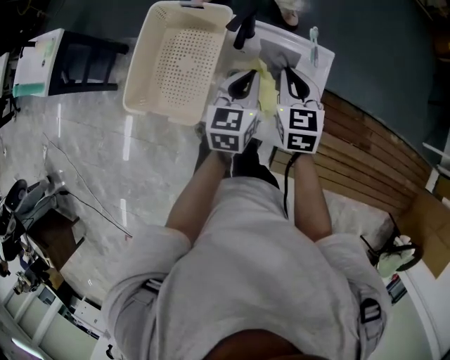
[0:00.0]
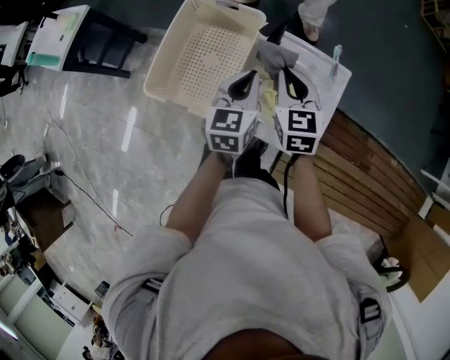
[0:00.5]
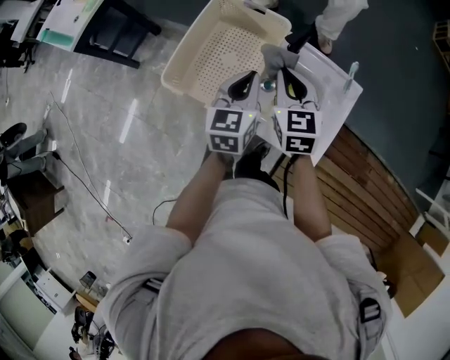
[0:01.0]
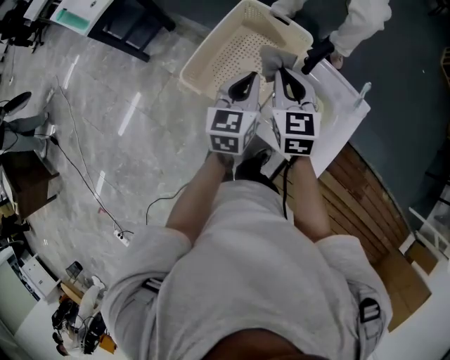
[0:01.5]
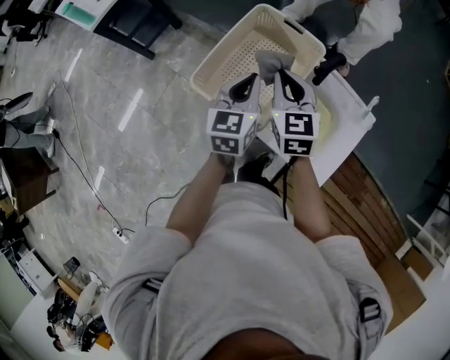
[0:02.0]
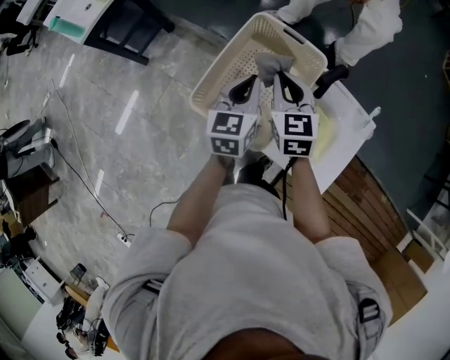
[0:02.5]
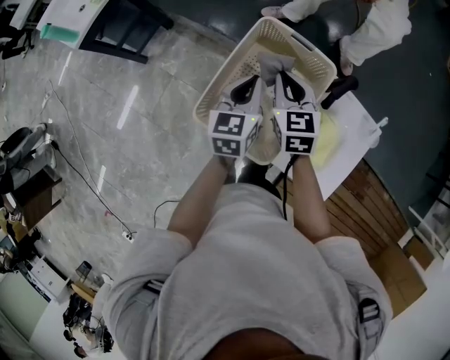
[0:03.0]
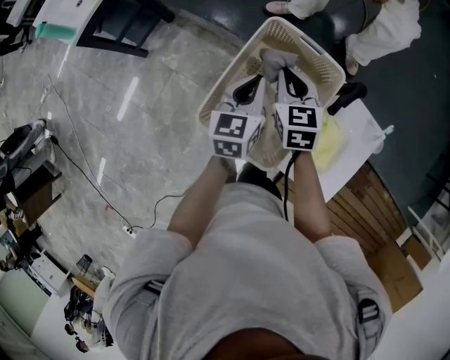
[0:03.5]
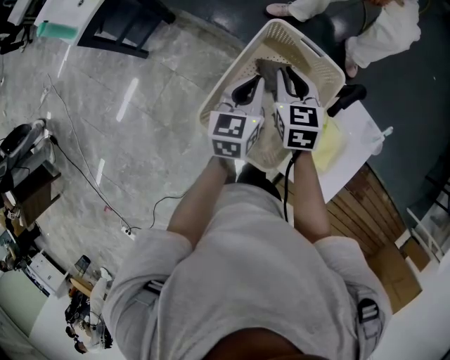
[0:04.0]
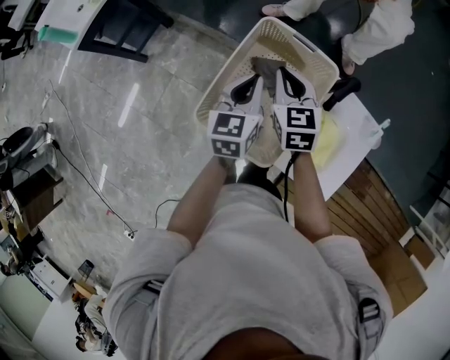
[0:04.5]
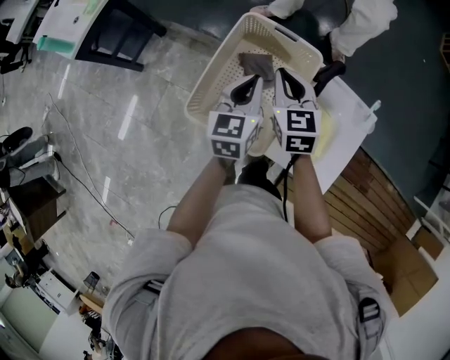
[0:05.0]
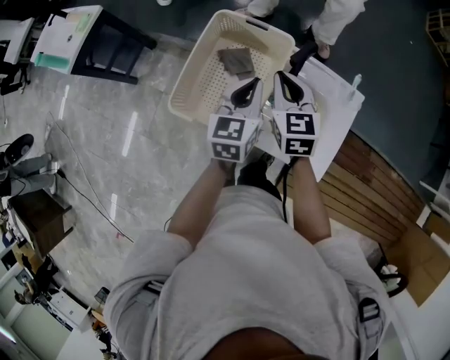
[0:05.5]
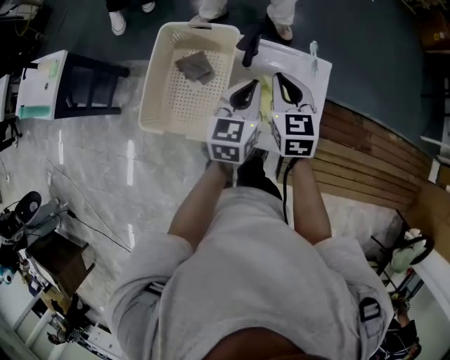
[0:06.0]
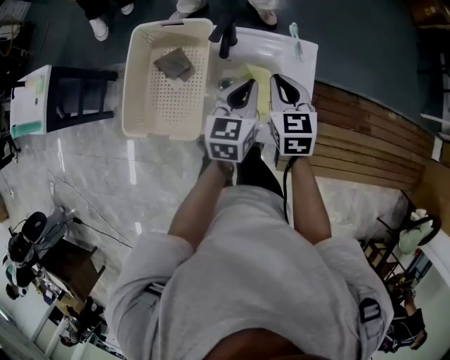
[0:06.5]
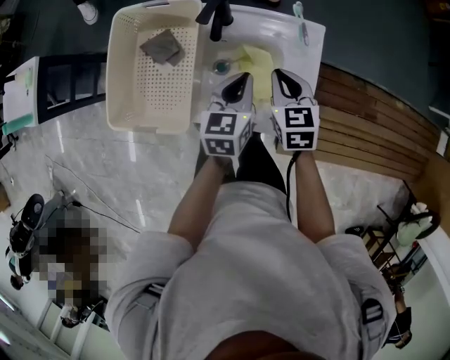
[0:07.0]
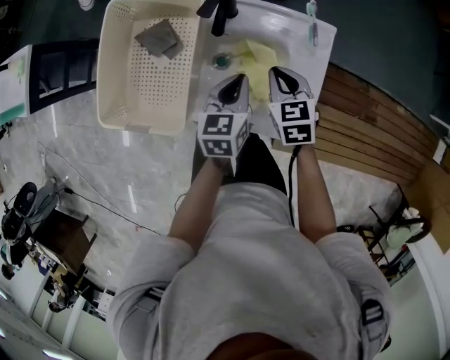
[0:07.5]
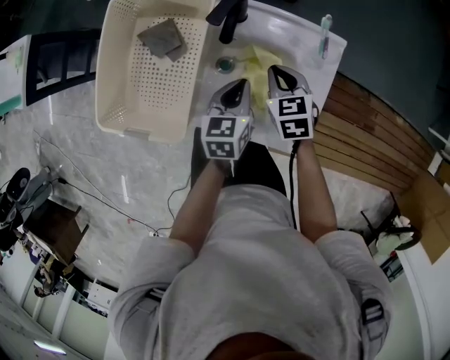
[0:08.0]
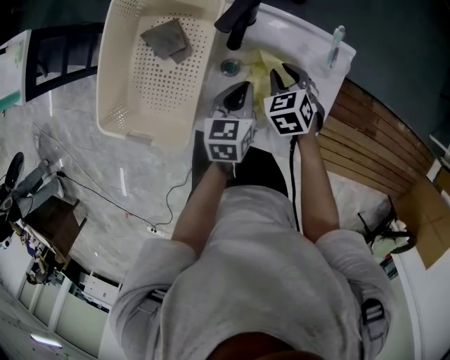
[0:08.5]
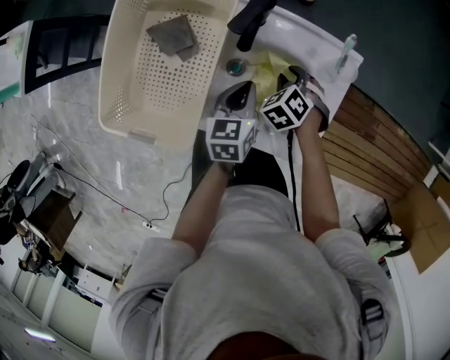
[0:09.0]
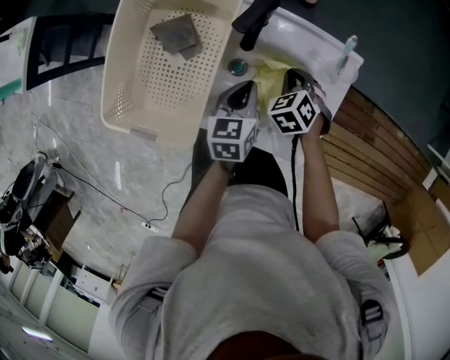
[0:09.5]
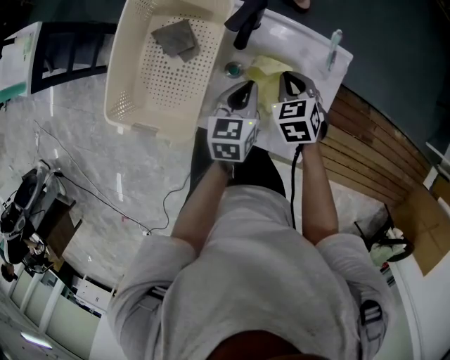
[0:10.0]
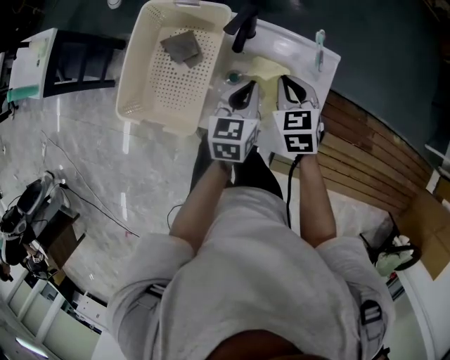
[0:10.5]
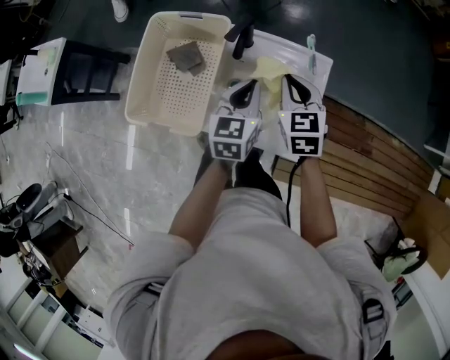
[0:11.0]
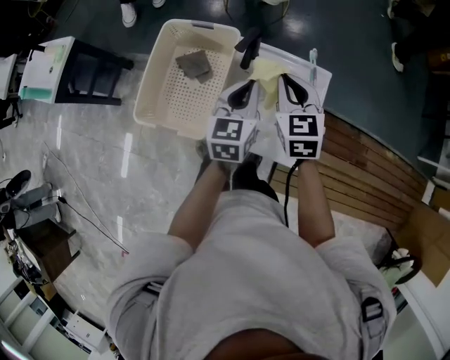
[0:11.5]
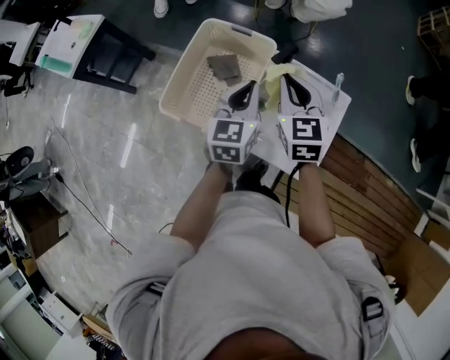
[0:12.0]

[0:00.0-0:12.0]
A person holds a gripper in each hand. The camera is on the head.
0:00.0 to 0:02.0: The grippers both shift to the left by about 25 cm. The right gripper rotates about 20 degrees. Meanwhile the left gripper rotates about 20 degrees.
0:02.0 to 0:04.0: The two grippers go about 10 cm forward and downward.
0:04.0 to 0:06.0: Both grippers move to the right and backward, some 25 cm. The right gripper changes its angle by about 20 degrees, while the left gripper rotates some 20 degrees.
0:06.0 to 0:08.0: The grippers both shift downward by some 20 cm. The left gripper changes its angle by roughly 20 degrees. The right gripper swivels approximately 20 degrees.
0:08.0 to 0:10.0: The right gripper moves some 10 cm downward and comes back, and opens, then closes once more.
0:10.0 to 0:12.0: Both grippers travel together upward and to the left, some 25 cm. The right gripper tilts its fingers some 30 degrees upward, while the left gripper turns by some 20 degrees.

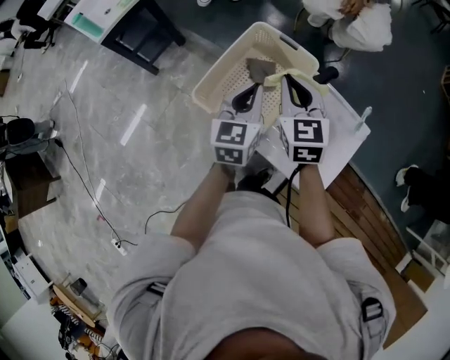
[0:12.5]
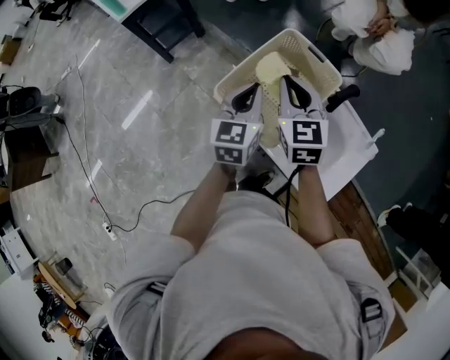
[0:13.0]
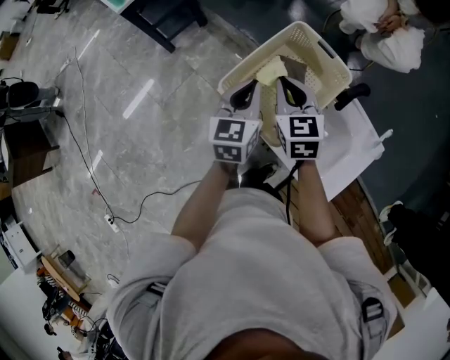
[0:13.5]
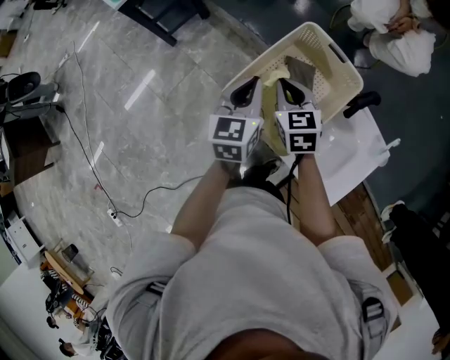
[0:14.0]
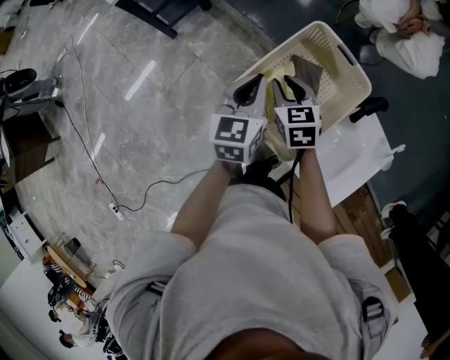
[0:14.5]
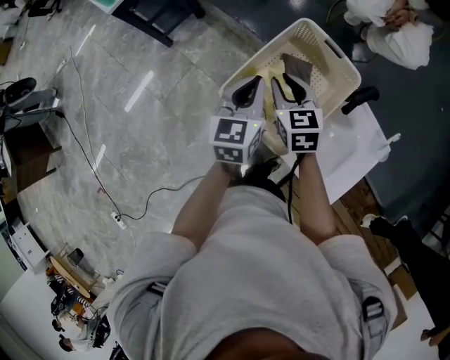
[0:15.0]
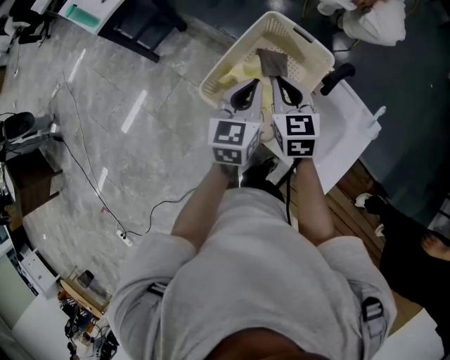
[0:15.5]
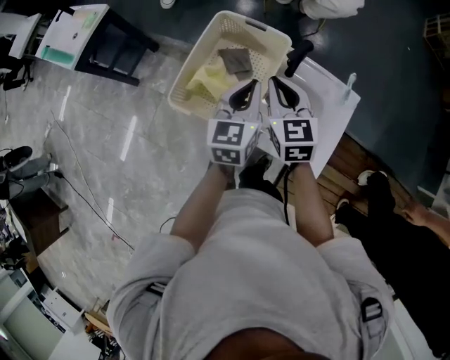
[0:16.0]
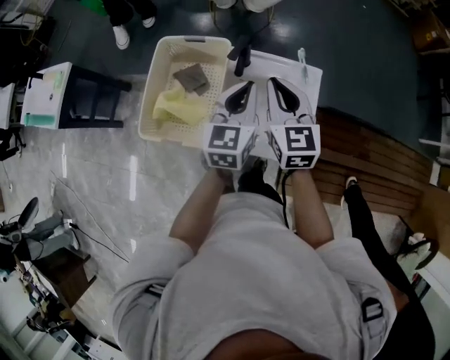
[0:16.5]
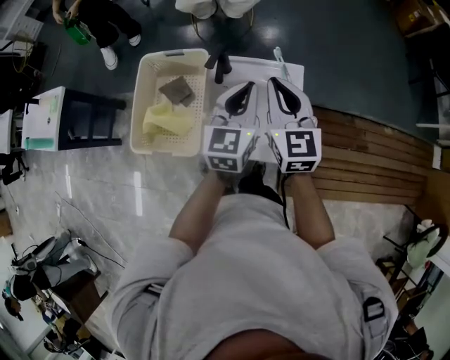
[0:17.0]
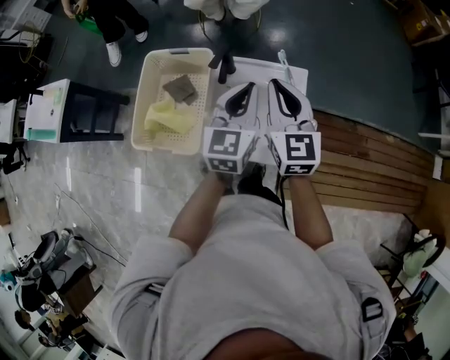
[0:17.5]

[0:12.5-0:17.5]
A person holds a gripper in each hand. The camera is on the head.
0:12.5 to 0:15.0: The left gripper travels to the left by about 10 cm, while the right gripper moves downward, to the left and forward, roughly 15 cm, and opens up.
0:15.0 to 0:17.5: The right gripper changes place by about 40 cm, swivels some 50 degrees, and closes; the left gripper moves about 35 cm, and changes its angle by roughly 40 degrees.

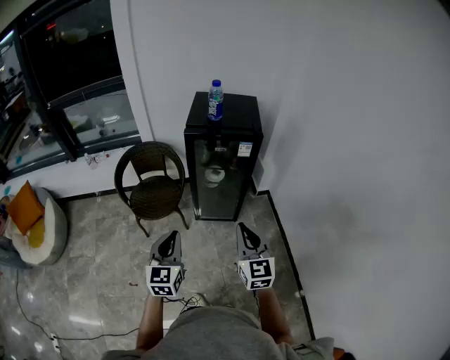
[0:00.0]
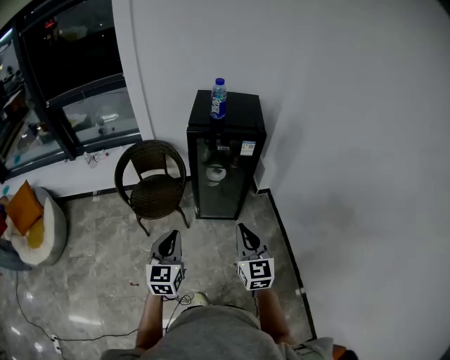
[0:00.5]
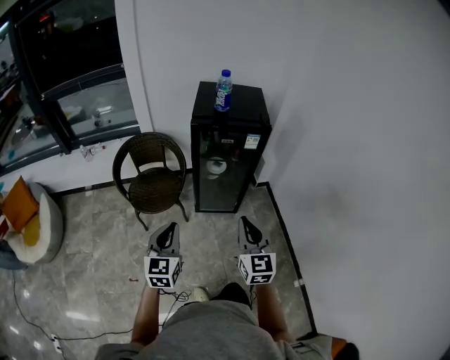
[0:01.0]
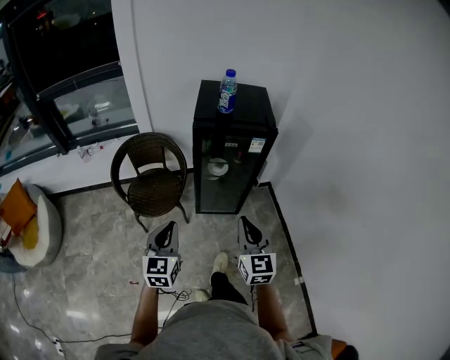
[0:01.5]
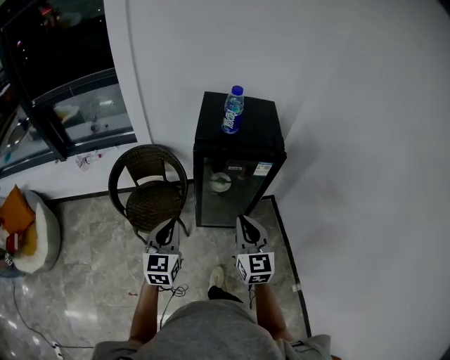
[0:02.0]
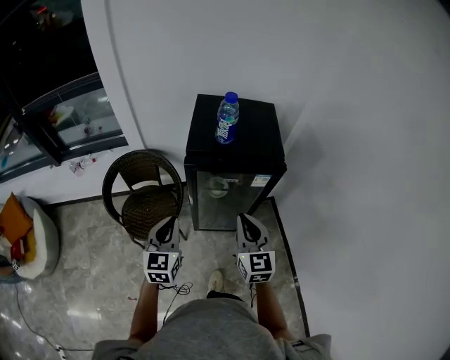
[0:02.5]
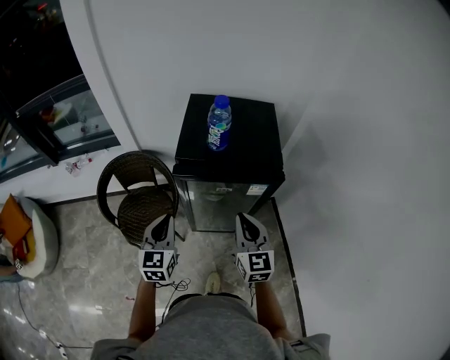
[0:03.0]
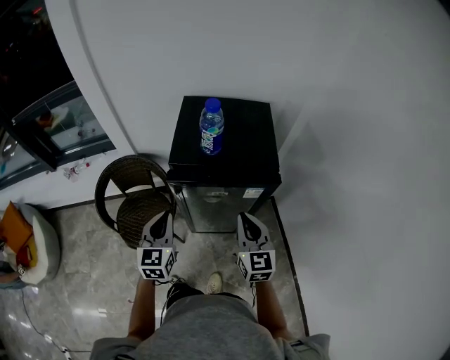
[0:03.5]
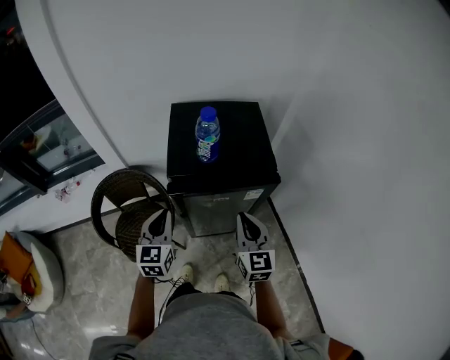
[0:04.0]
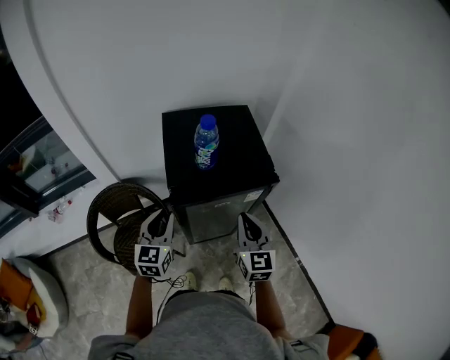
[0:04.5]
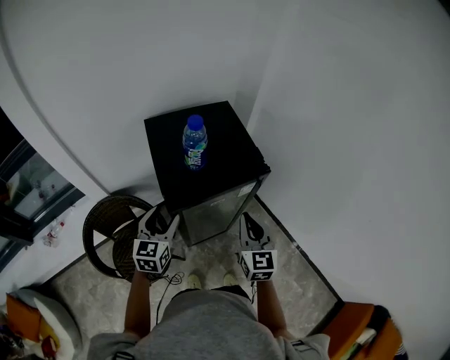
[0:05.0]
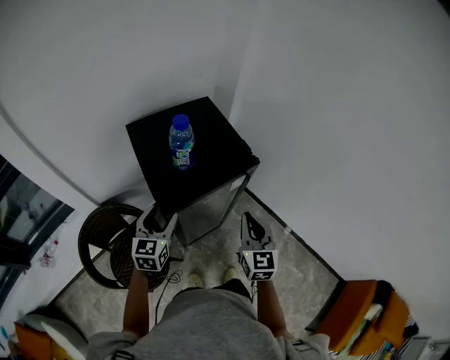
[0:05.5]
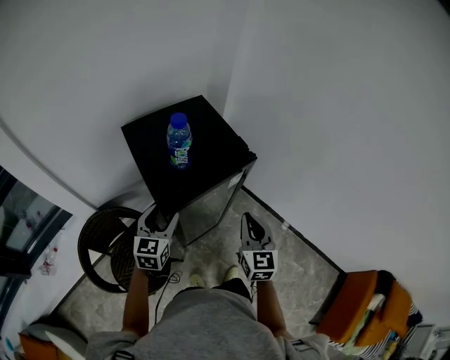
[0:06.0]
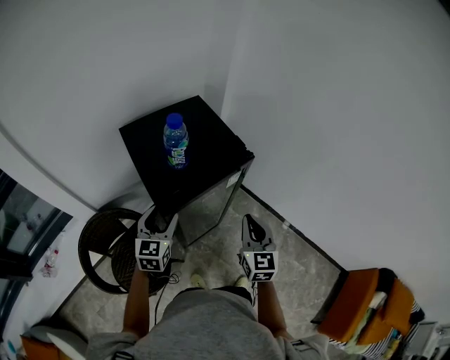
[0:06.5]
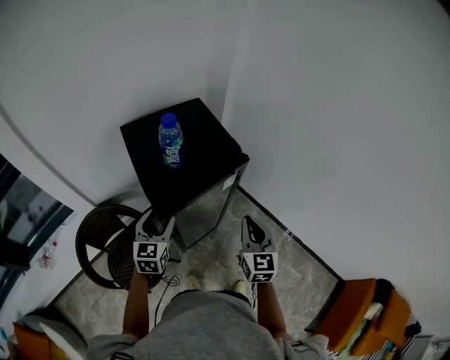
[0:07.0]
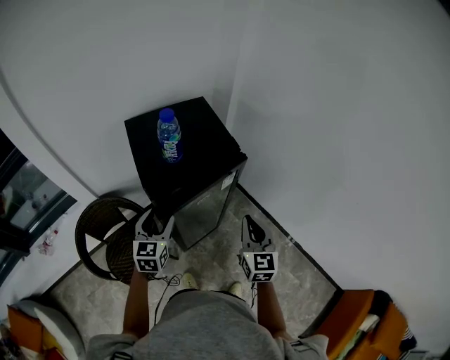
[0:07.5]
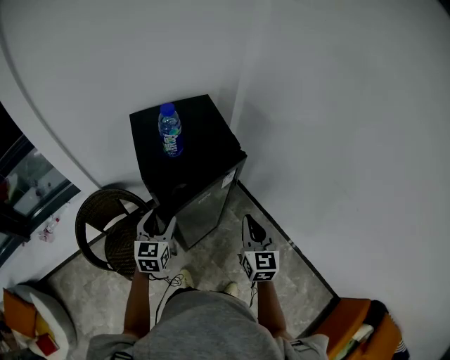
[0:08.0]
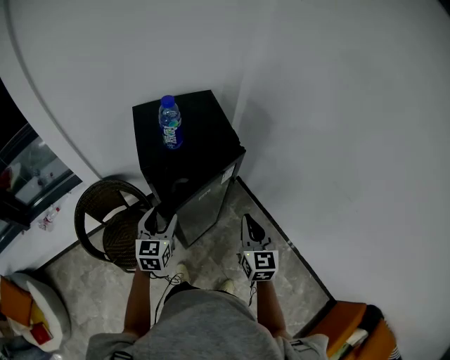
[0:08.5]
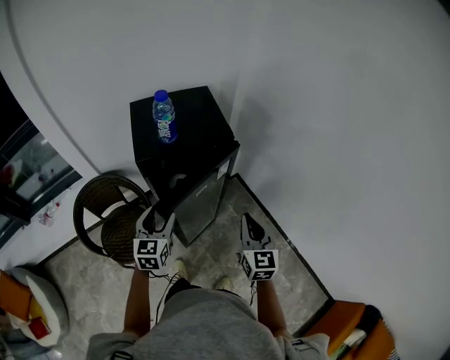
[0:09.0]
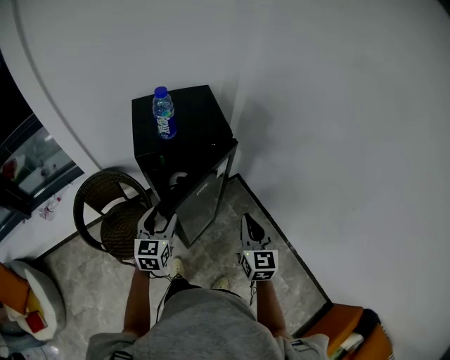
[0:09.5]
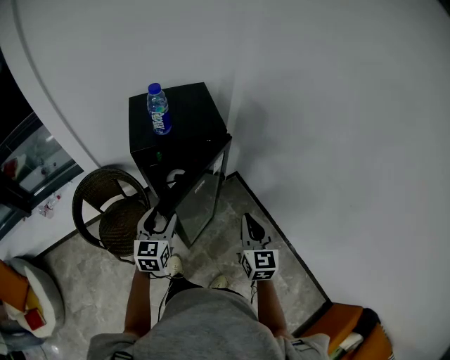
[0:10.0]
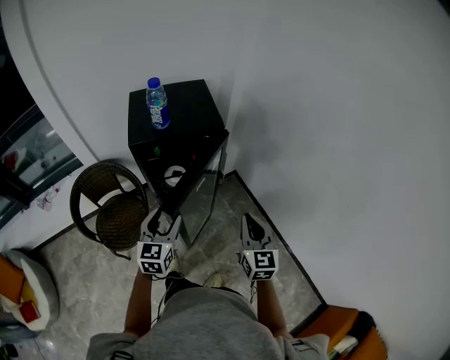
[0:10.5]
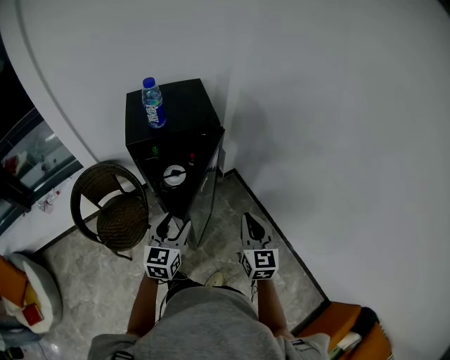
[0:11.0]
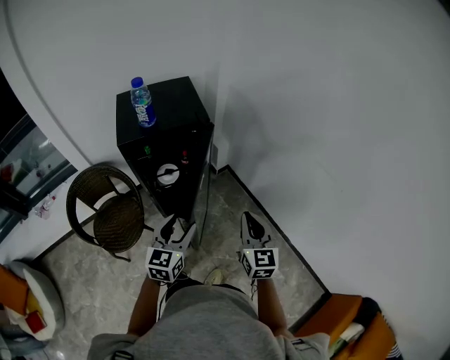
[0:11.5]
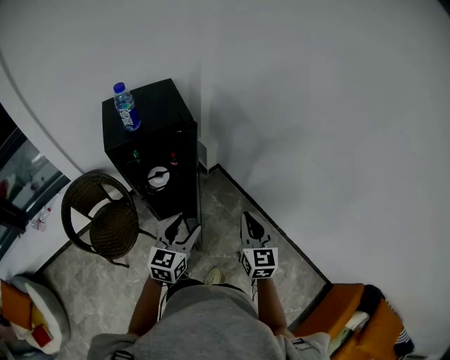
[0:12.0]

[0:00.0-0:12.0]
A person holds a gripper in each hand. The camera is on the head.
0:00.0 to 0:02.0: Both grippers travel together forward, approximately 20 cm.
0:02.0 to 0:04.0: The two grippers go about 20 cm forward.
0:04.0 to 0:06.0: The left gripper ends up some 10 cm from where it was, rotates some 30 degrees, and opens up. Meanwhile the right gripper swivels roughly 30 degrees.
0:06.0 to 0:08.0: The left gripper goes approximately 10 cm backward and to the right; the right gripper travels to the right by about 10 cm.
0:08.0 to 0:10.0: The right gripper is displaced to the right and backward by about 10 cm. The left gripper moves backward and to the right, about 10 cm.
0:10.0 to 0:12.0: The right gripper heads to the right and backward, covering roughly 10 cm. The left gripper travels to the right and backward by approximately 20 cm, and rotates about 20 degrees.
